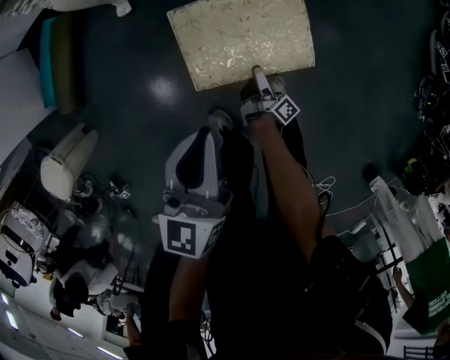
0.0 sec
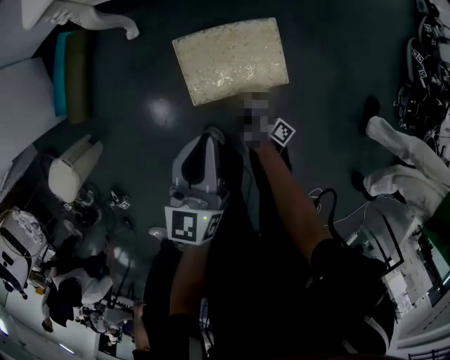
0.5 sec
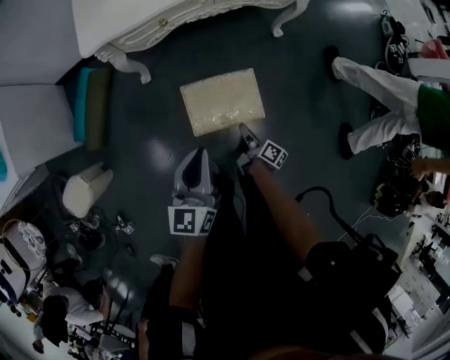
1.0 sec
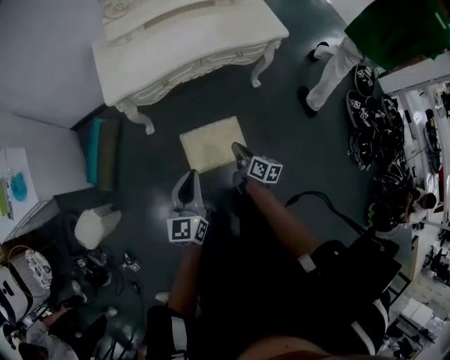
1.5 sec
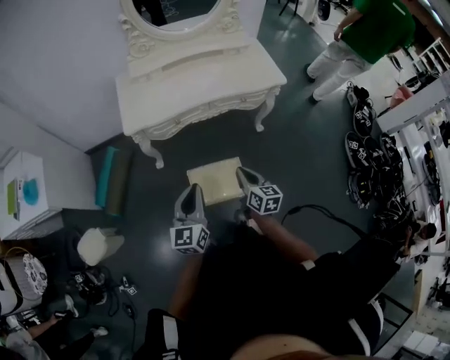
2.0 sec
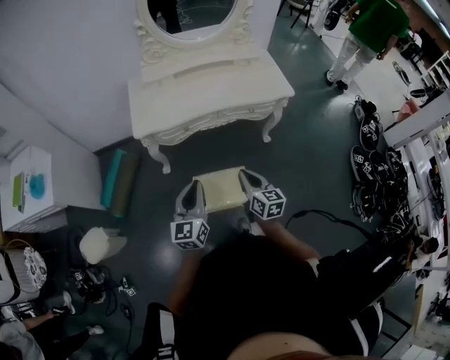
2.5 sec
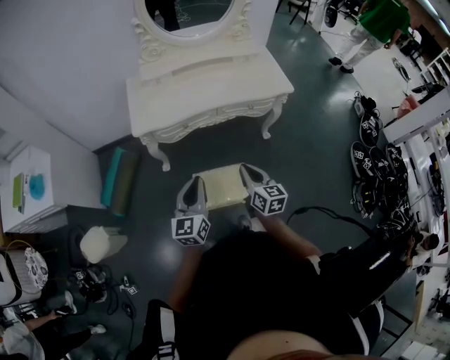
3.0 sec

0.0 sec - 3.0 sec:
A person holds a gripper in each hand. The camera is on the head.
0.0 sec - 1.5 sec: The right gripper goes about 50 cm upward, turns by approximately 40 degrees, and closes its fingers; the left gripper moves upward, some 30 cm.
1.5 sec - 3.0 sec: The right gripper is displaced upward by roughly 20 cm, and rotates roughly 30 degrees; the left gripper goes about 5 cm upward.

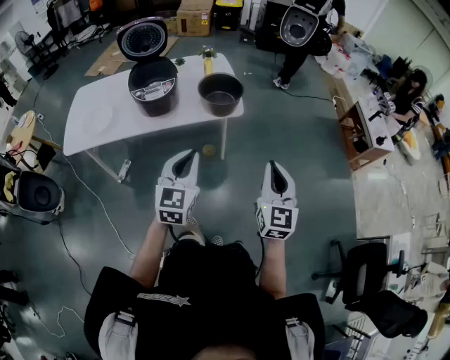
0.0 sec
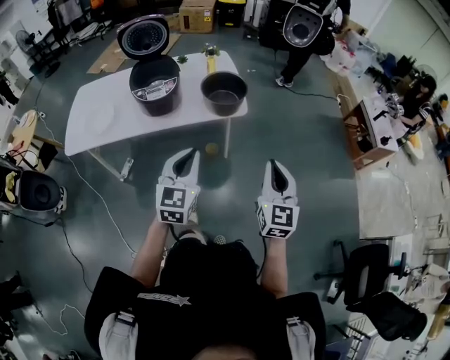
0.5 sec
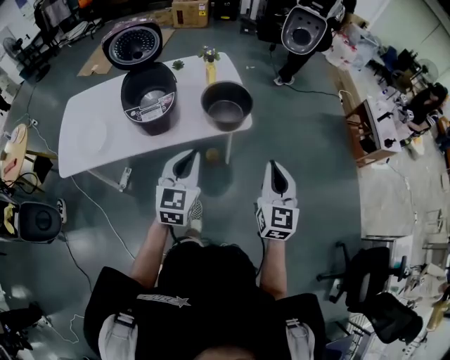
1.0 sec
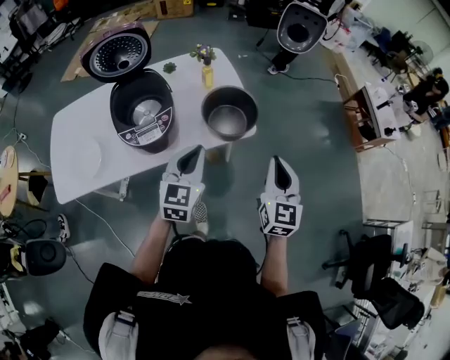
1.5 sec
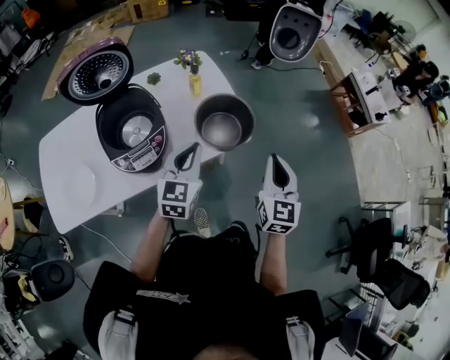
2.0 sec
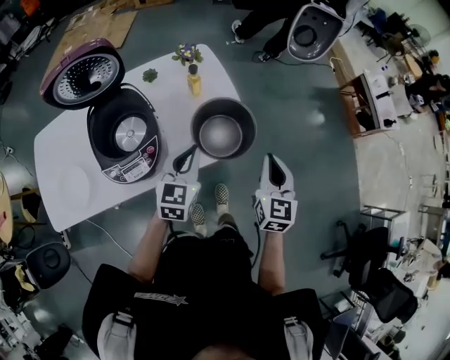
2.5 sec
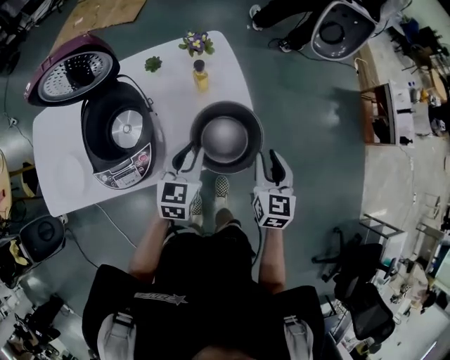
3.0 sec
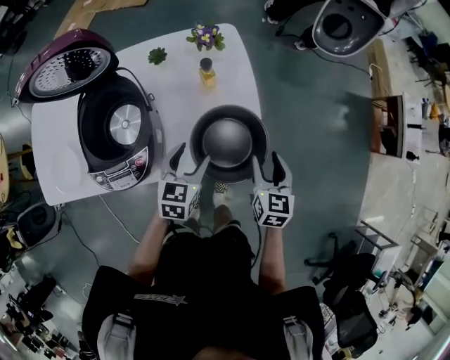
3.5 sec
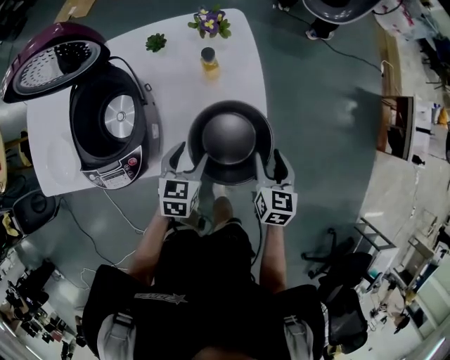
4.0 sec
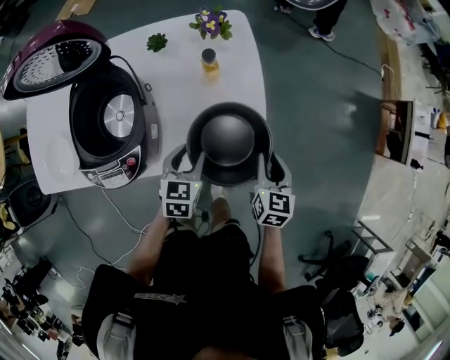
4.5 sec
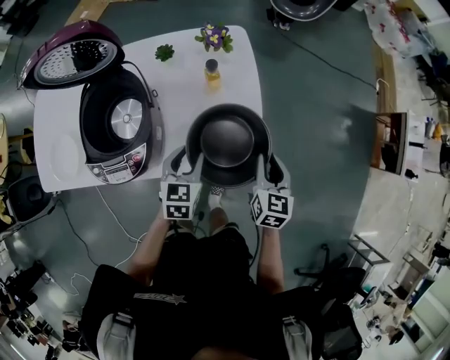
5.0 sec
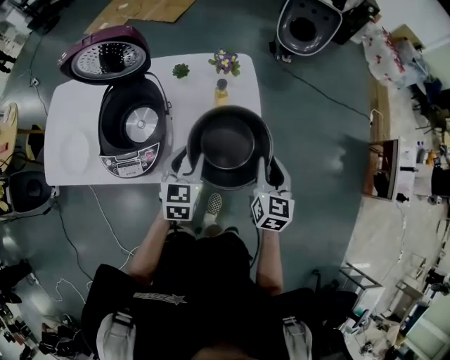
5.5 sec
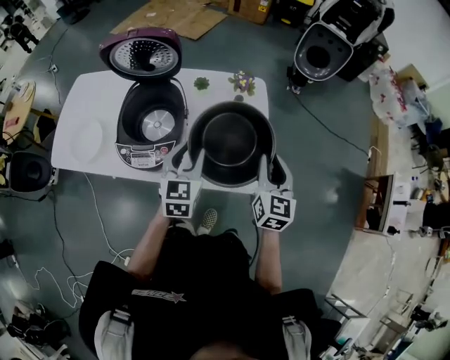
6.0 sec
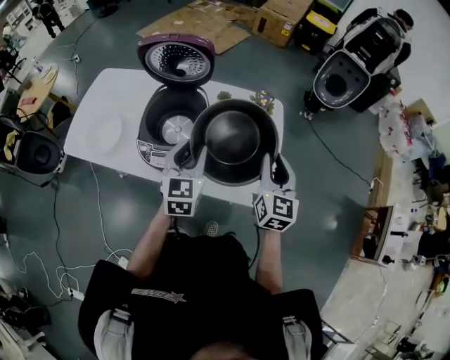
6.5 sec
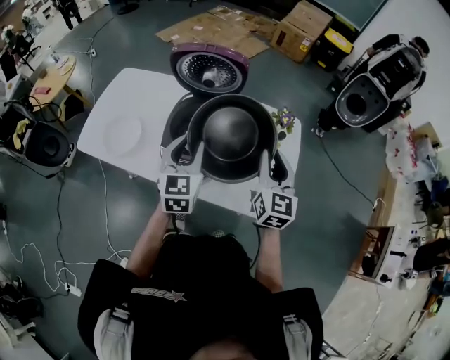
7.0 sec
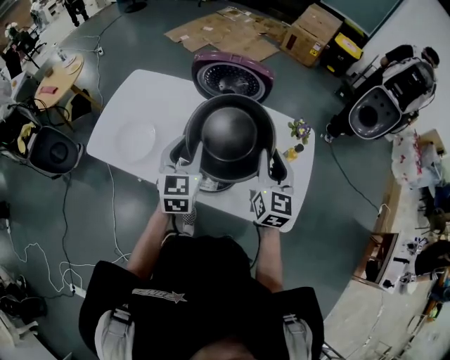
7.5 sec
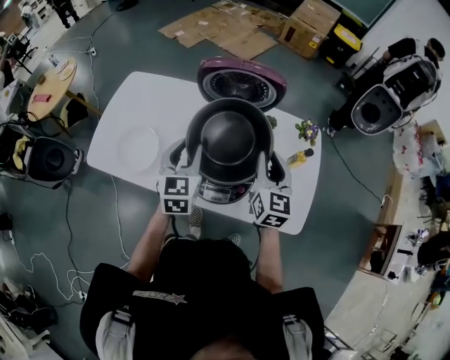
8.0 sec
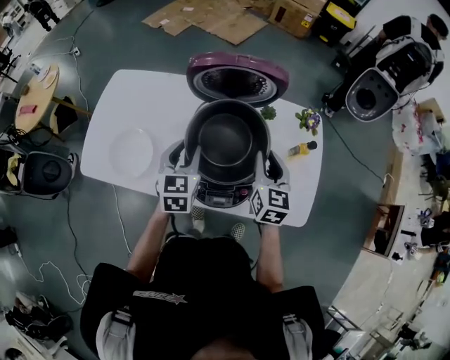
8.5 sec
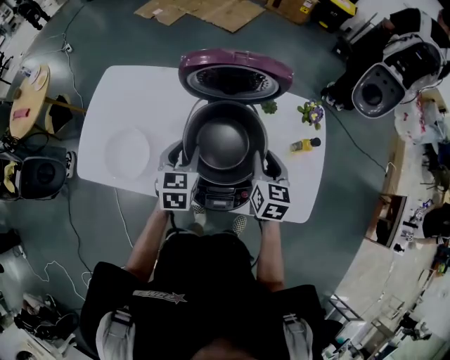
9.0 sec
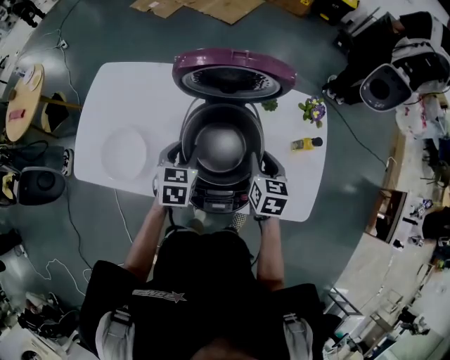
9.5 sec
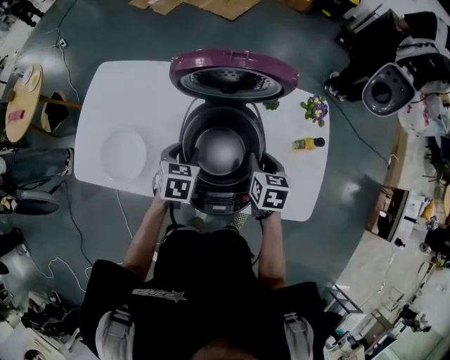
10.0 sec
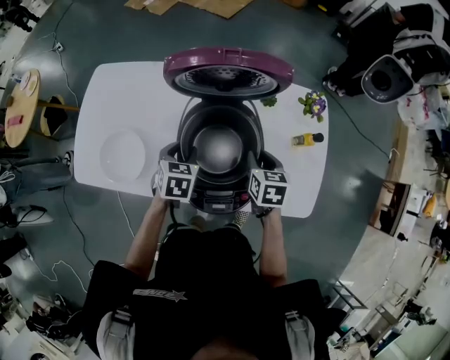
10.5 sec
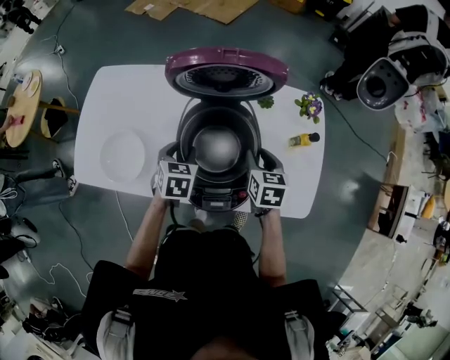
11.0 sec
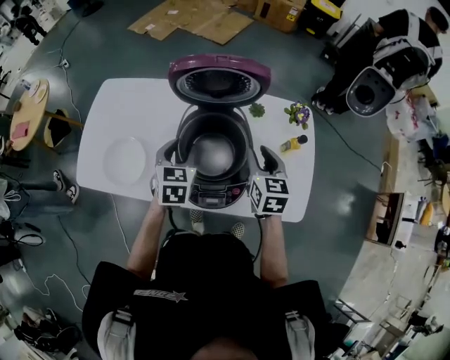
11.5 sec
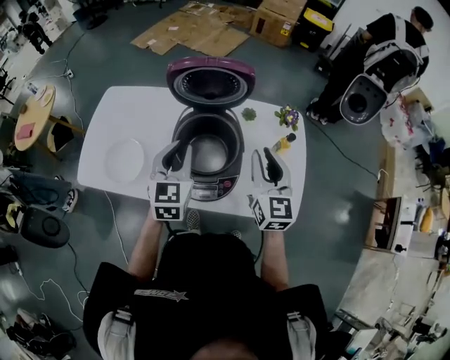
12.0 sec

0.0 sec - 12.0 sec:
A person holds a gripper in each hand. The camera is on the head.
0.0 sec - 2.0 sec: The right gripper moves forward and to the left, some 30 cm; the left gripper heads forward, covering about 35 cm.
2.0 sec - 4.0 sec: The grippers both shift downward and forward by some 25 cm. The left gripper rotates roughly 30 degrees, and opens its fingers. The right gripper swivels some 30 degrees, and opens its fingers.
4.0 sec - 6.0 sec: Both grippers travel together upward, some 20 cm. The right gripper rotates some 30 degrees, and closes. Meanwhile the left gripper swivels some 30 degrees, and closes up.
6.0 sec - 8.0 sec: The left gripper is displaced to the left by some 30 cm. The right gripper heads to the left and forward, covering approximately 30 cm.
8.0 sec - 10.0 sec: Both grippers move downward, some 15 cm. The left gripper angles its fingers downward, by roughly 30 degrees. The right gripper angles its fingers downward, by about 30 degrees.
10.0 sec - 12.0 sec: The two grippers go approximately 20 cm upward. The right gripper points its fingers some 40 degrees further upward; the left gripper angles its fingers upward, by roughly 40 degrees.

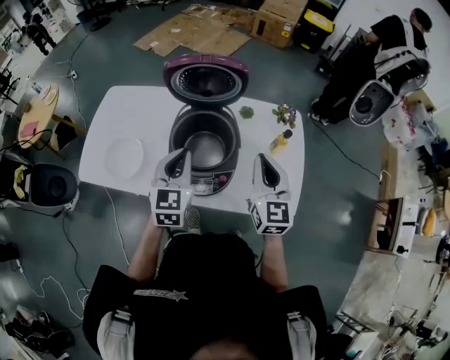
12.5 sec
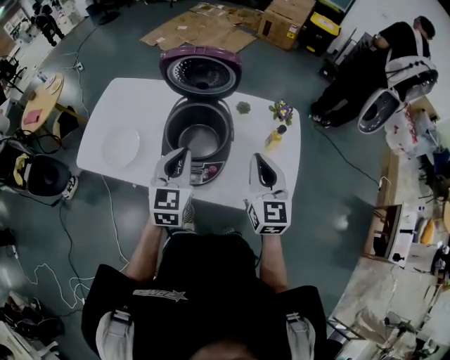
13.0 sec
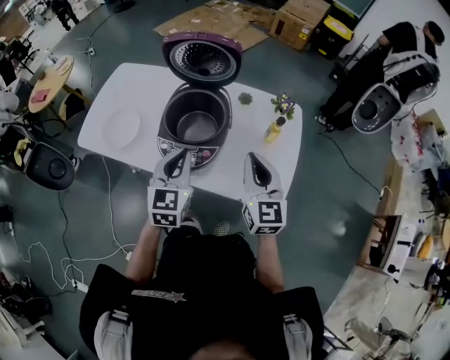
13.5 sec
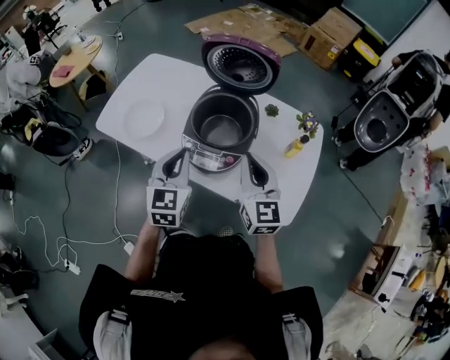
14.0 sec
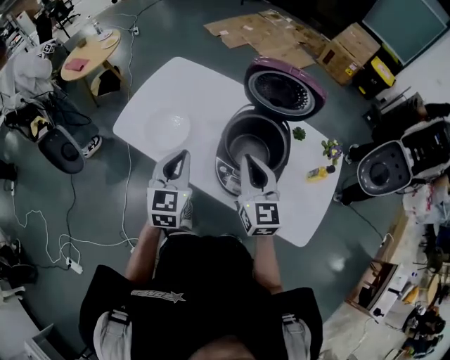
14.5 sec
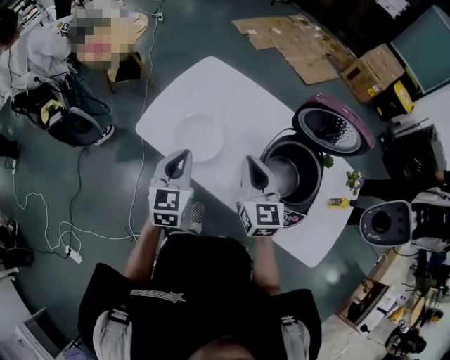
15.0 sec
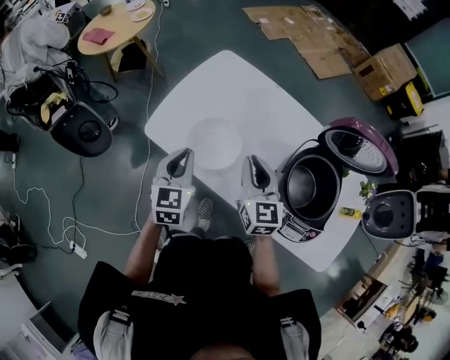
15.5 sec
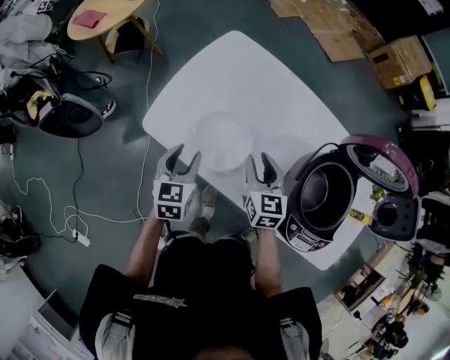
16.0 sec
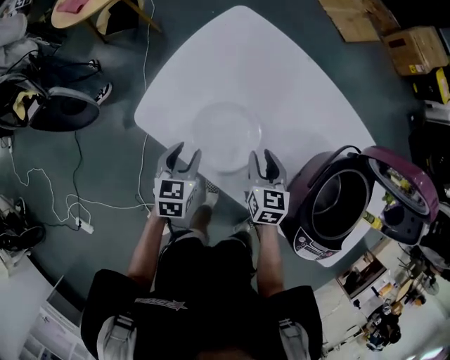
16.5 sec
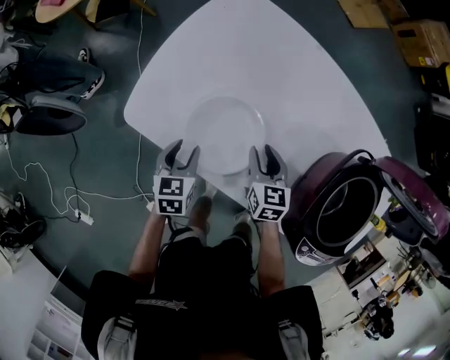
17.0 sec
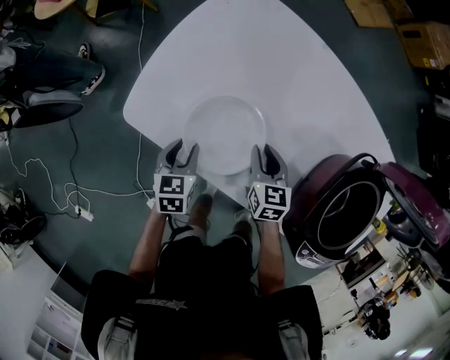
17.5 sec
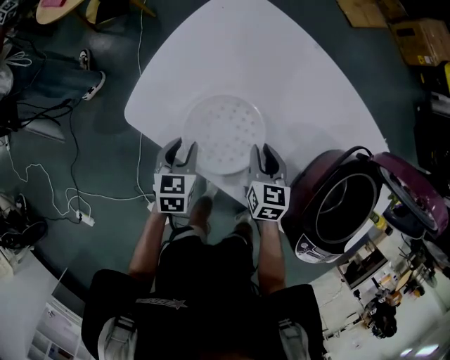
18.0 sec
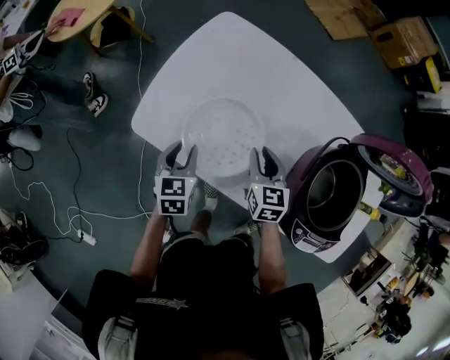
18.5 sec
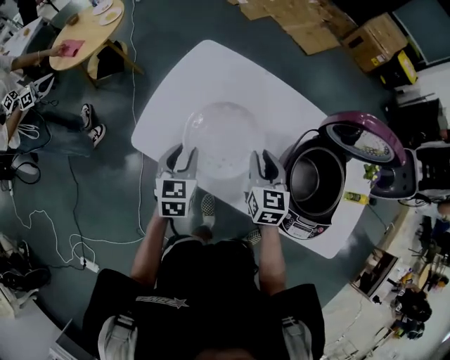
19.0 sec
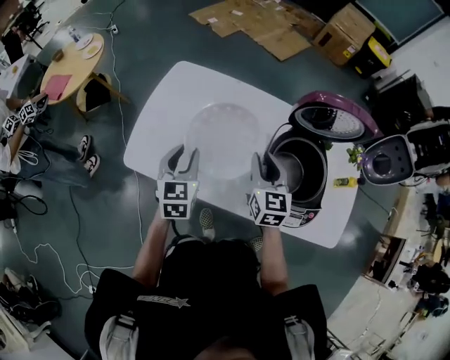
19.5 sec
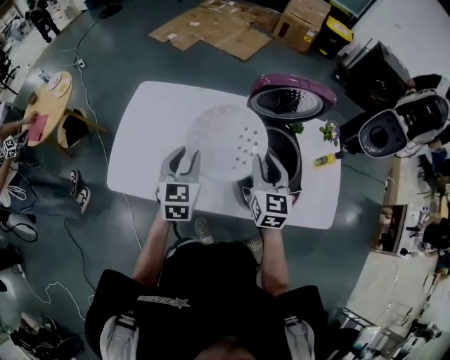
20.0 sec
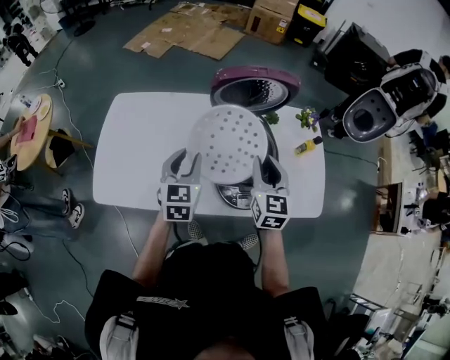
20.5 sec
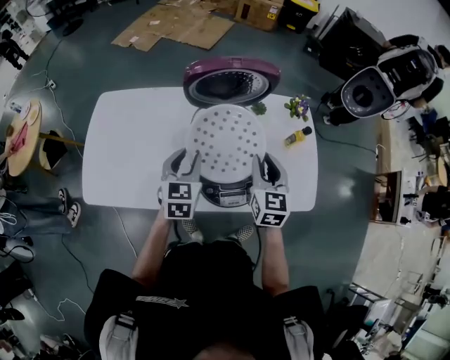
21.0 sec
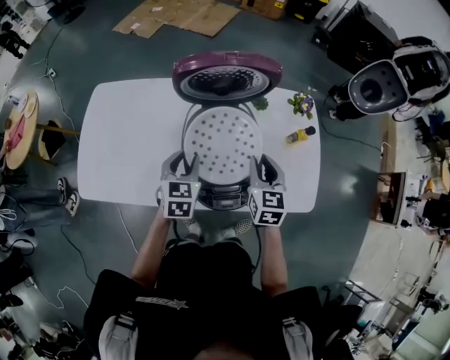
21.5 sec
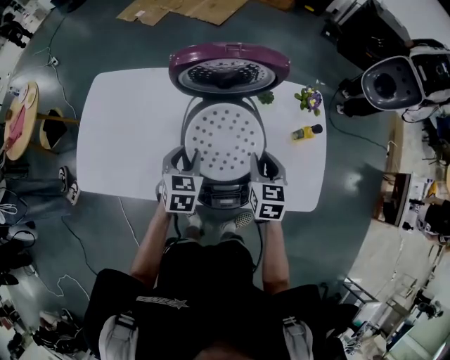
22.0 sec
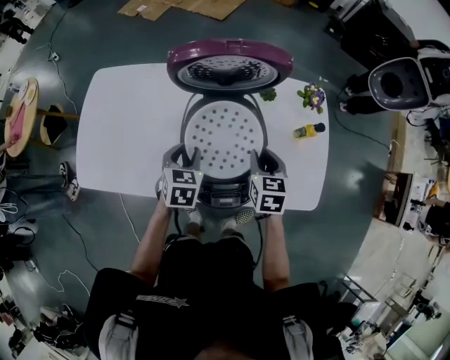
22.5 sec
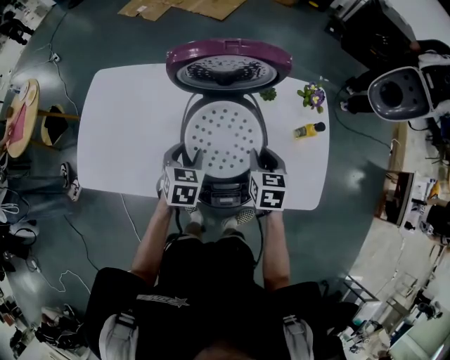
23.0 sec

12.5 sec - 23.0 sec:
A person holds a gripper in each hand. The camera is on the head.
12.5 sec - 14.5 sec: Both grippers travel together to the left, some 15 cm. The right gripper rotates approximately 20 degrees.
14.5 sec - 16.5 sec: The left gripper heads downward, to the left and forward, covering approximately 40 cm, changes its angle by approximately 30 degrees, and opens, while the right gripper heads downward, forward and to the left, covering approximately 40 cm, turns by approximately 30 degrees, and opens.
16.5 sec - 19.0 sec: The two grippers go some 10 cm upward.
19.0 sec - 21.0 sec: The right gripper changes place by roughly 35 cm, and turns by some 30 degrees, while the left gripper changes place by approximately 35 cm, and turns by about 30 degrees.
21.0 sec - 23.0 sec: Both grippers travel together downward, about 10 cm. The right gripper rotates approximately 20 degrees. The left gripper changes its angle by about 20 degrees.

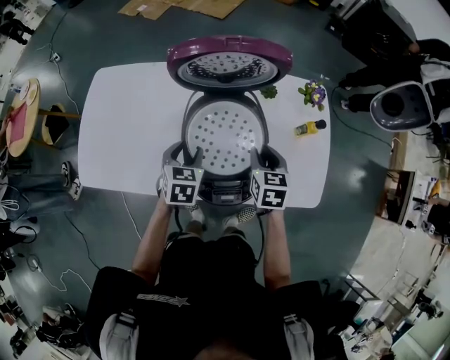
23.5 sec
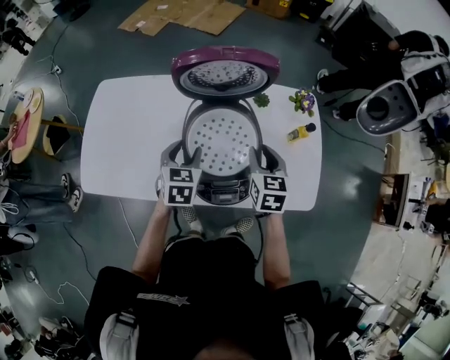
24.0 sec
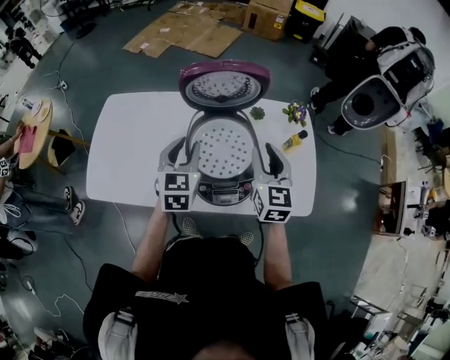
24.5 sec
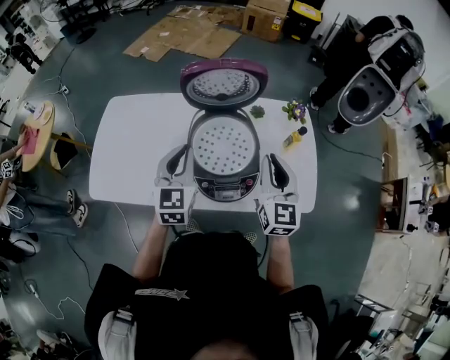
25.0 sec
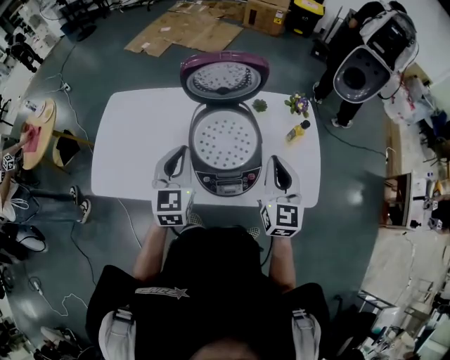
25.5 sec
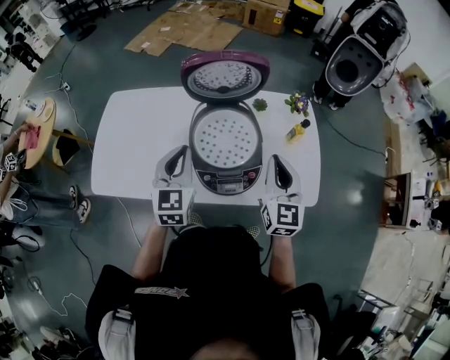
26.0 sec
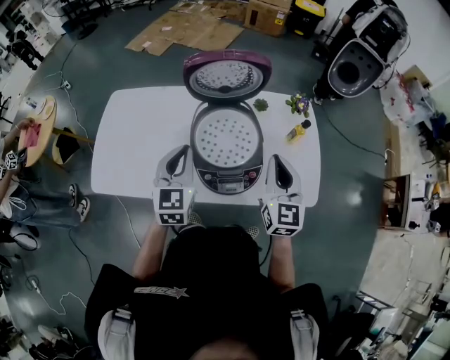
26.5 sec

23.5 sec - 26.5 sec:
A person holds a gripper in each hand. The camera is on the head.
23.5 sec - 25.0 sec: The right gripper shifts some 20 cm upward and backward, and angles its fingers upward, by some 40 degrees. Meanwhile the left gripper goes some 15 cm upward, points its fingers approximately 30 degrees further upward, and closes.
25.0 sec - 26.5 sec: The grippers move only a little.
